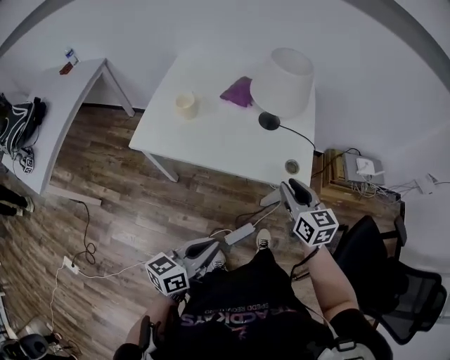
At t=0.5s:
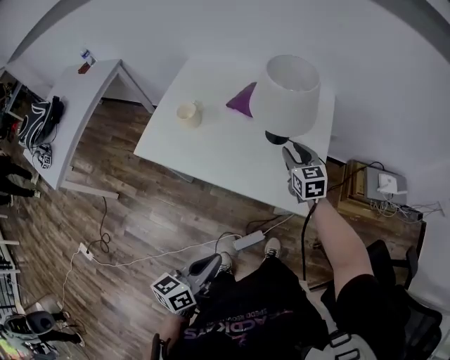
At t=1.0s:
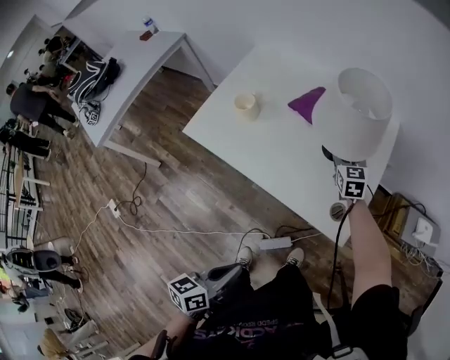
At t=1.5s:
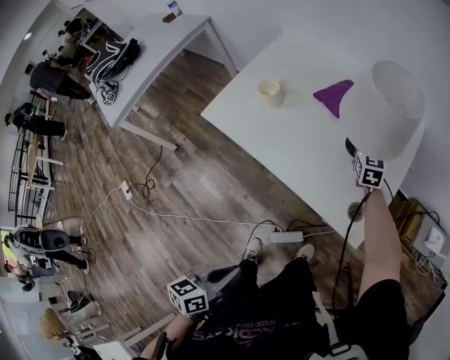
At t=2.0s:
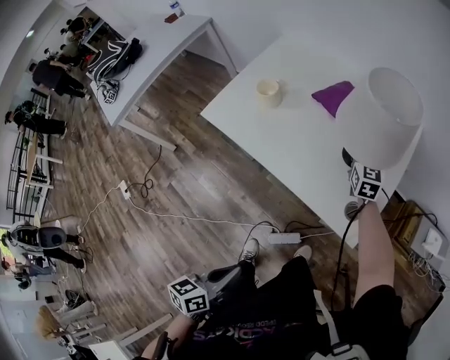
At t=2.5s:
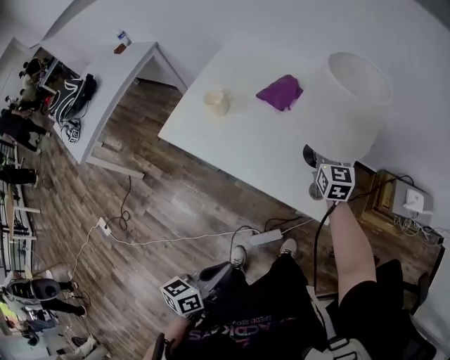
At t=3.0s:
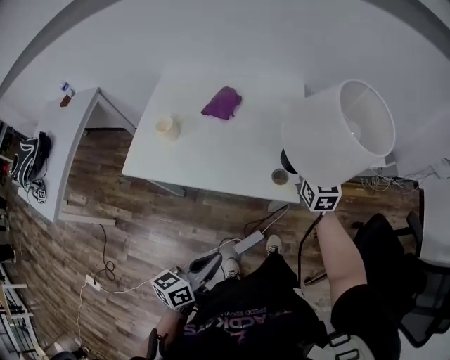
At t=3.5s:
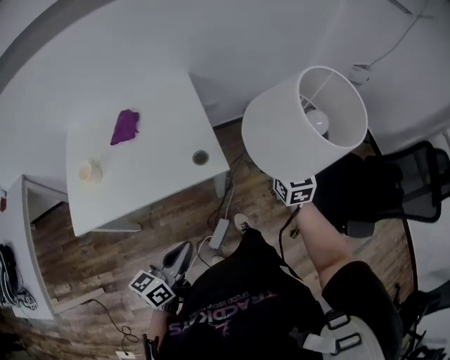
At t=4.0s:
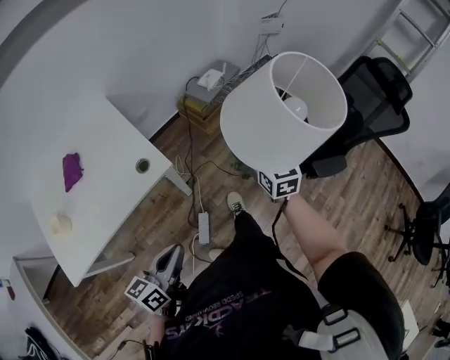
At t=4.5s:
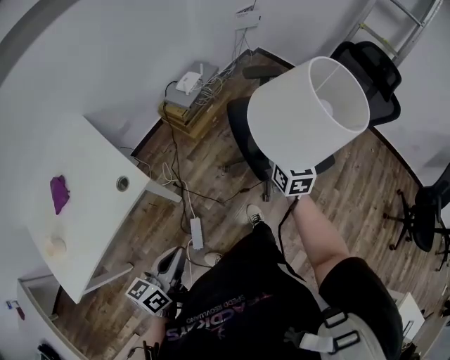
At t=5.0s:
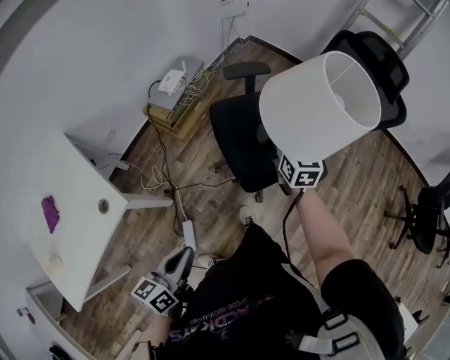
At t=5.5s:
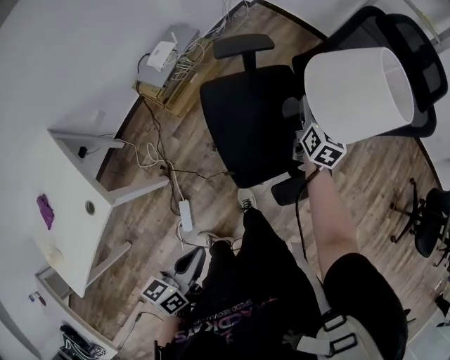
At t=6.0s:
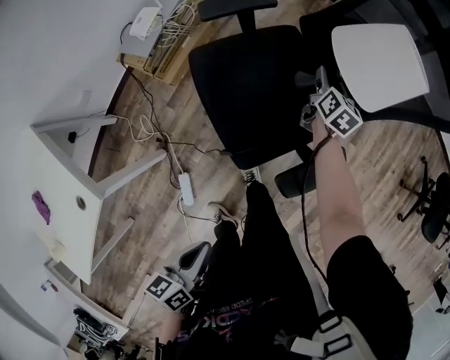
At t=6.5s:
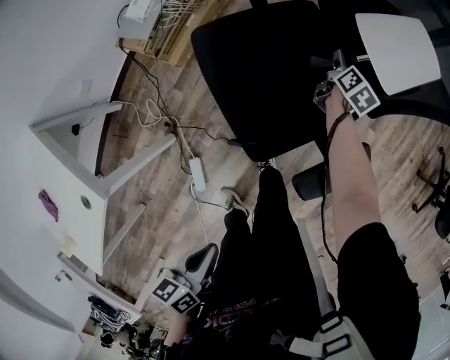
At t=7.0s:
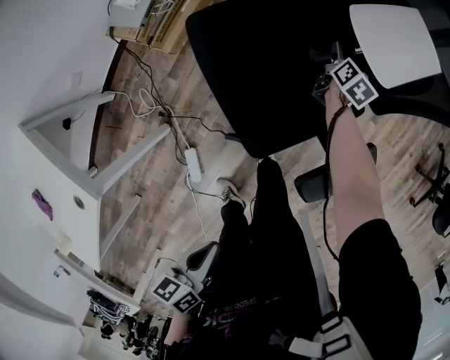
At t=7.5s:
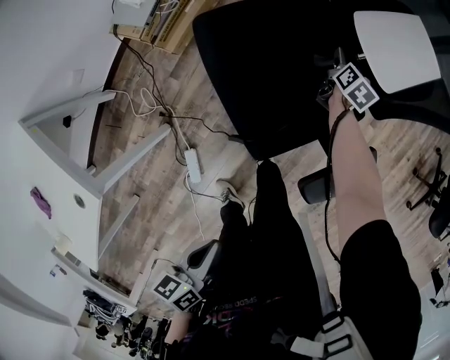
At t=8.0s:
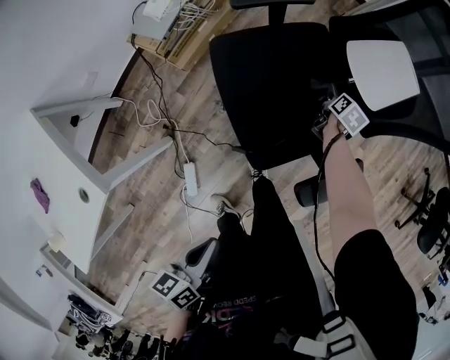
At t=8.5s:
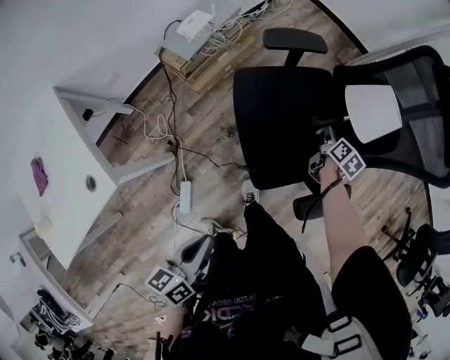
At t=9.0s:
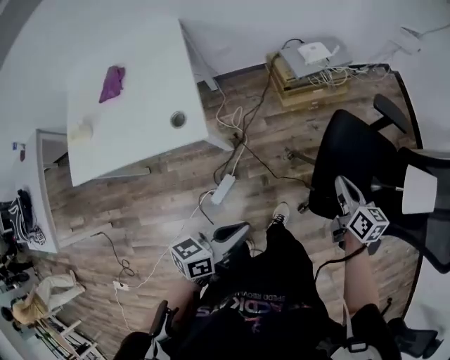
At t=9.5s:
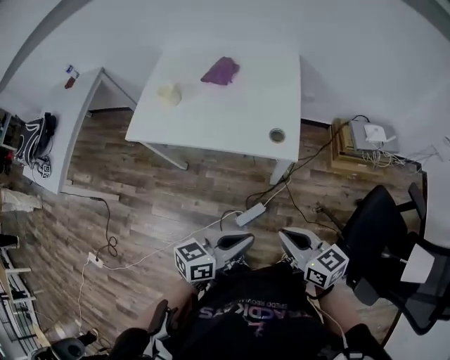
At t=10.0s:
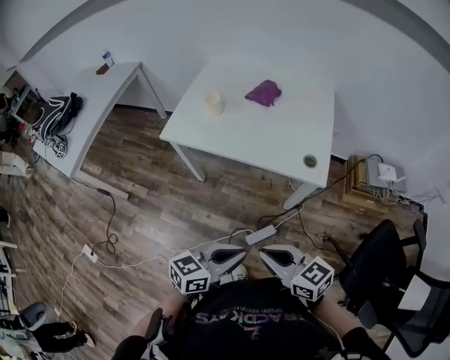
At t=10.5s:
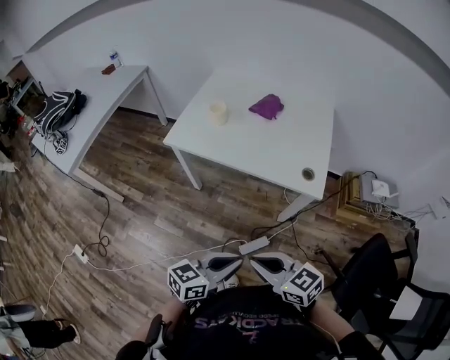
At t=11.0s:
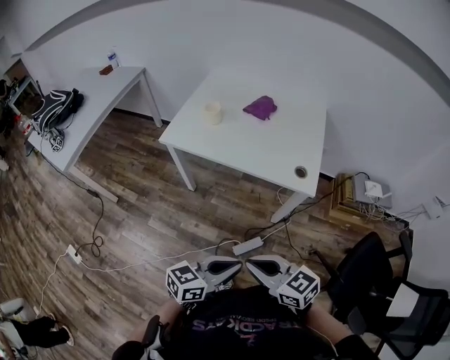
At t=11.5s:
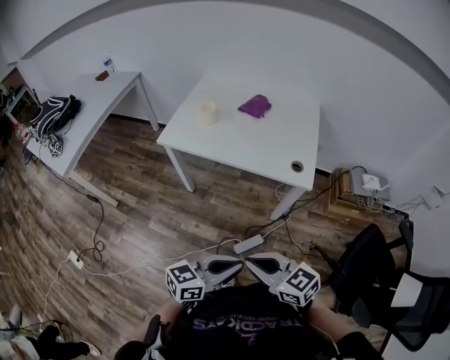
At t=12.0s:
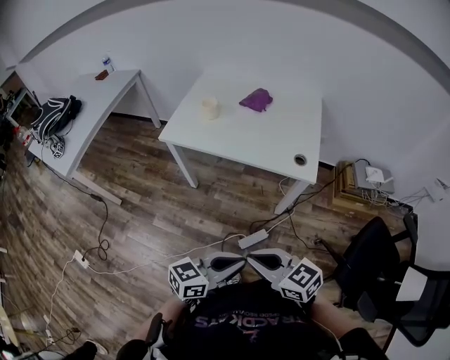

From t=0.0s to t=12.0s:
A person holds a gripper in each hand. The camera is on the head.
From t=0.0s to t=2.0s: The left gripper travels to the right and downward by roughly 5 cm, and turns by about 40 degrees, while the right gripper travels forward by some 30 cm.
From t=2.0s to t=4.0s: The right gripper shifts by some 60 cm, and changes its angle by roughly 60 degrees, while the left gripper ends up some 10 cm from where it was, and turns by some 70 degrees.
From t=4.0s to t=6.0s: The right gripper changes place by approximately 60 cm, and changes its angle by about 60 degrees. The left gripper moves some 35 cm, and changes its angle by roughly 30 degrees.
From t=6.0s to t=8.0s: The right gripper travels downward by approximately 15 cm, swivels roughly 20 degrees, and opens.
From t=8.0s to t=10.0s: Both grippers are carried roughly 70 cm. The left gripper rotates some 50 degrees; the right gripper points its fingers some 30 degrees further upward, and closes its fingers.
From t=10.0s to t=12.0s: Both grippers travel together backward, approximately 5 cm.

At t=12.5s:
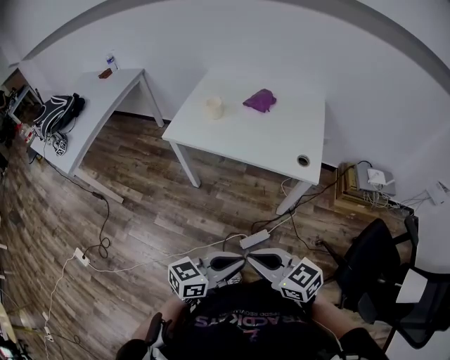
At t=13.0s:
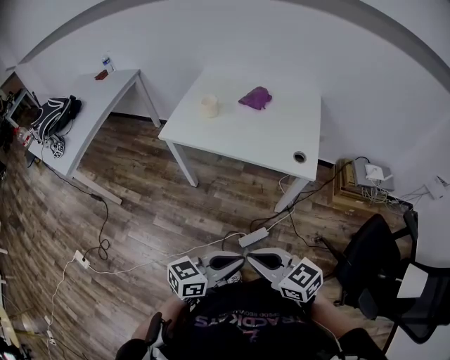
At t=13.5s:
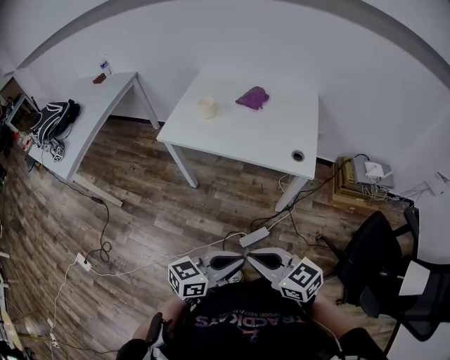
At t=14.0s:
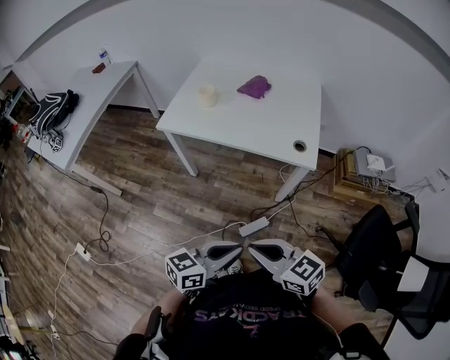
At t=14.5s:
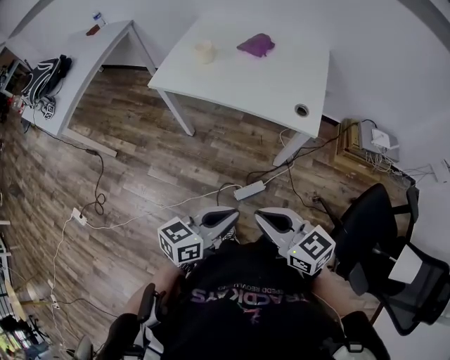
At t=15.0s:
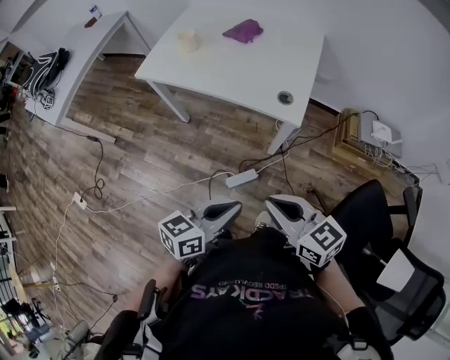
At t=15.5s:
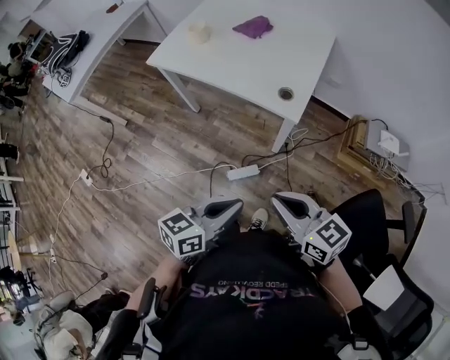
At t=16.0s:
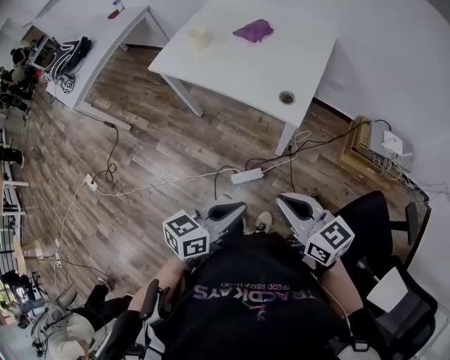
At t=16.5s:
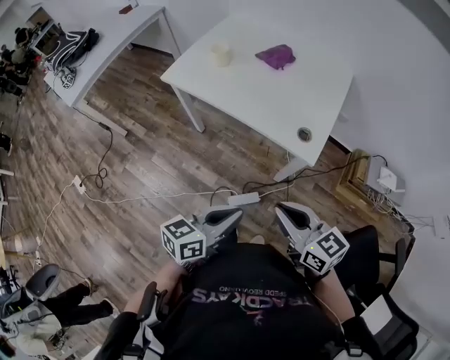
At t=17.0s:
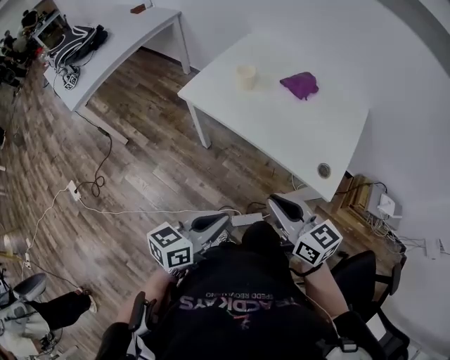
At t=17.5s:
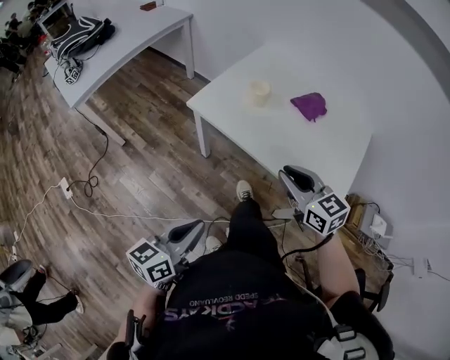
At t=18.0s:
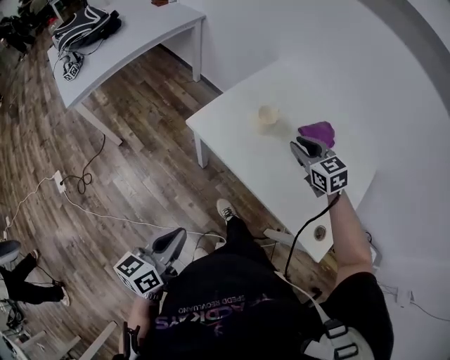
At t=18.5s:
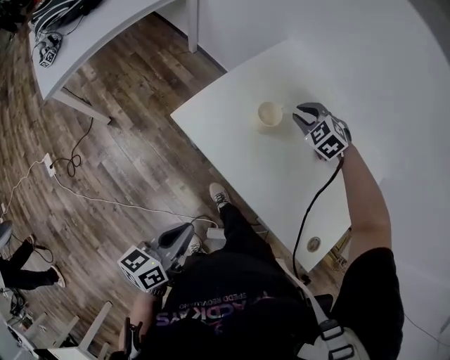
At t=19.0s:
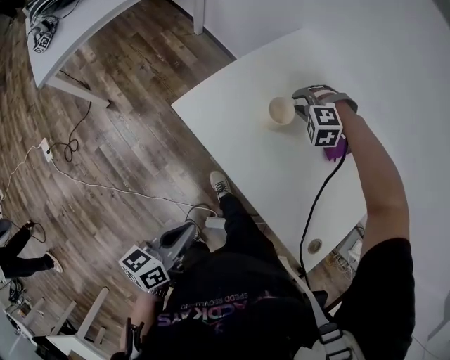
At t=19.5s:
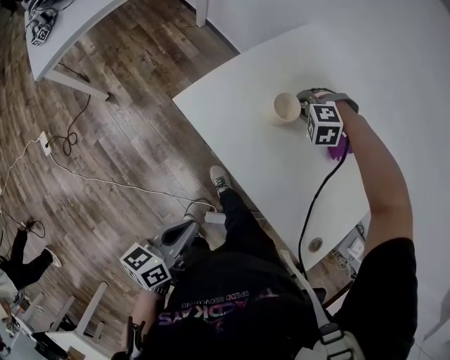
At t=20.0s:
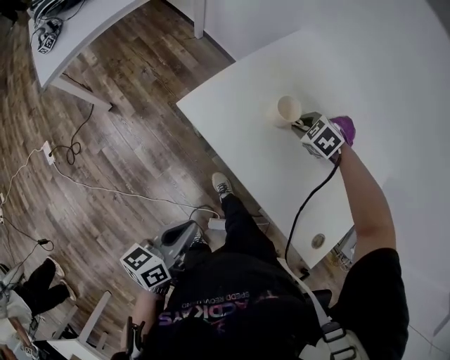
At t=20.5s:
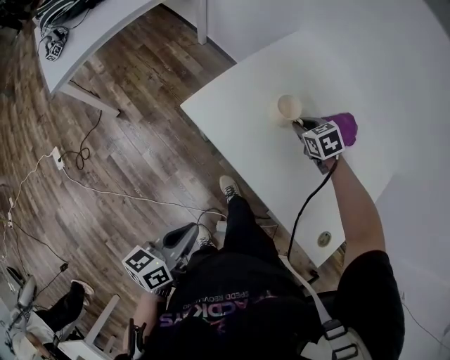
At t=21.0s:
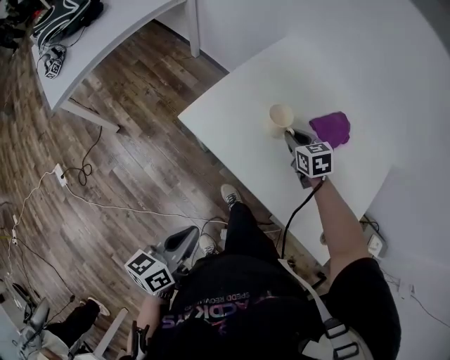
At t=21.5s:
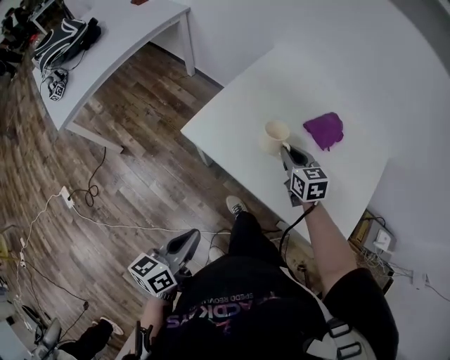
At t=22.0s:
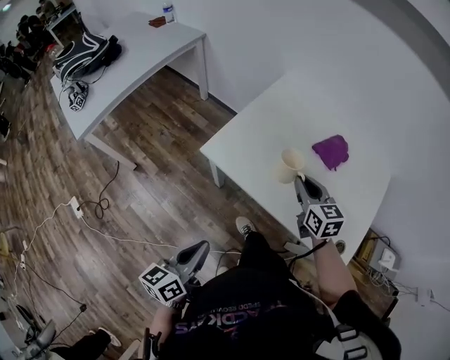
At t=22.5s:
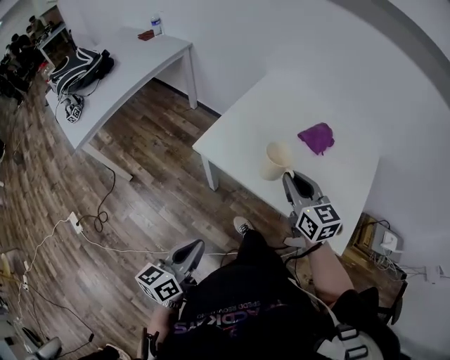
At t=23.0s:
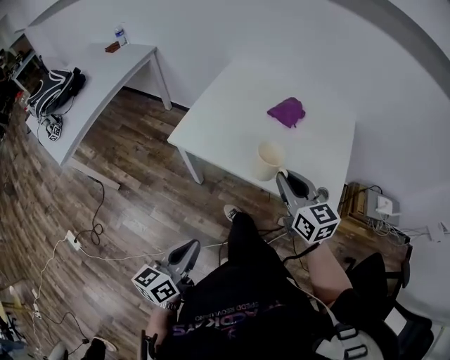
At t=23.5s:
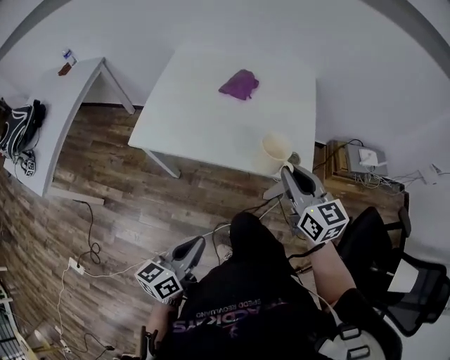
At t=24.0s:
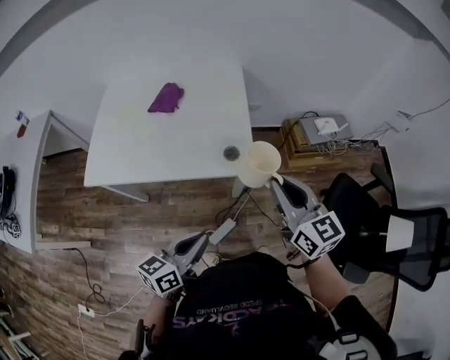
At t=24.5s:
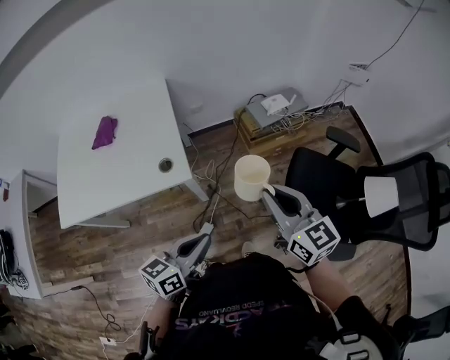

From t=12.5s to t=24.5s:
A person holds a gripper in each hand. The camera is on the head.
From t=12.5s to t=14.5s: The right gripper heads to the right, covering some 5 cm.
From t=14.5s to t=16.5s: The left gripper shifts about 10 cm to the right and forward, while the right gripper goes approximately 15 cm to the right and forward.
From t=16.5s to t=18.5s: The right gripper is displaced forward by about 60 cm, and rolls counterclockwise, seen from behind, by approximately 60 degrees; the left gripper goes some 35 cm forward and to the left, and rotates roughly 30 degrees.
From t=18.5s to t=20.5s: The right gripper moves downward, some 5 cm, and turns by roughly 40 degrees.
From t=20.5s to t=22.5s: The left gripper shifts some 10 cm backward and to the left. The right gripper heads backward and upward, covering some 30 cm, and tips its fingers upward by approximately 40 degrees.
From t=22.5s to t=24.5s: The two grippers travel together, about 60 cm. The left gripper swivels some 60 degrees. Meanwhile the right gripper swivels some 40 degrees.

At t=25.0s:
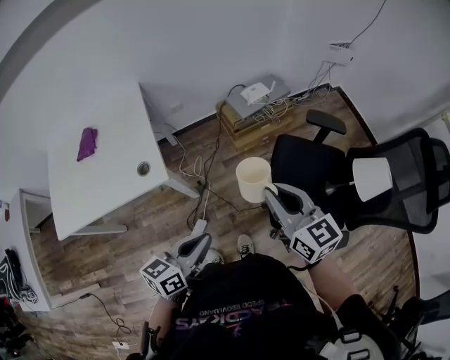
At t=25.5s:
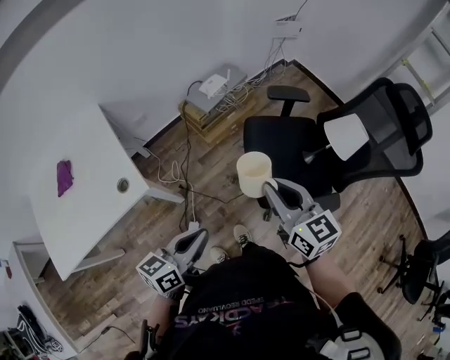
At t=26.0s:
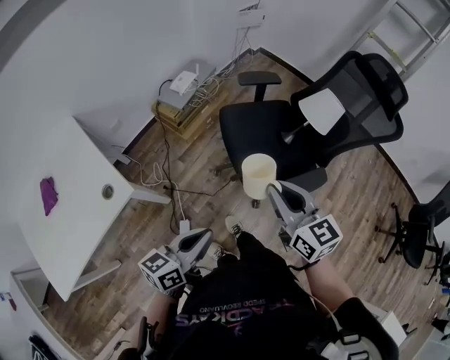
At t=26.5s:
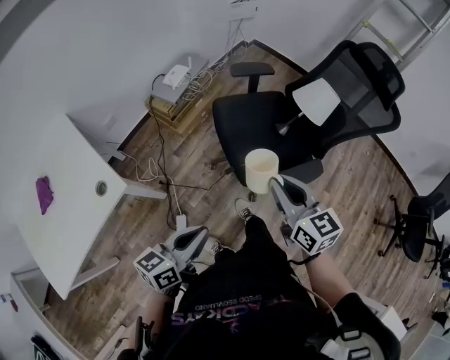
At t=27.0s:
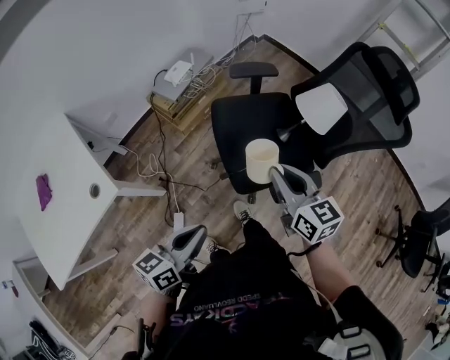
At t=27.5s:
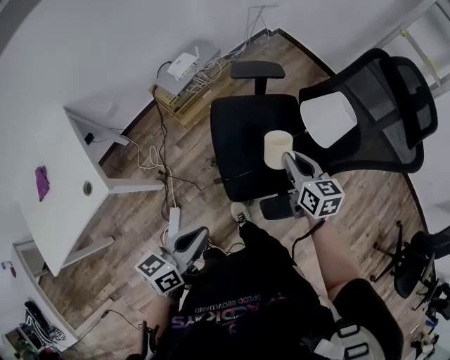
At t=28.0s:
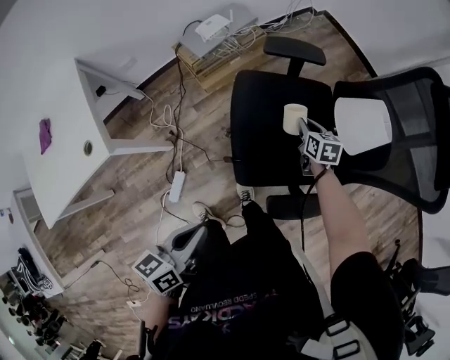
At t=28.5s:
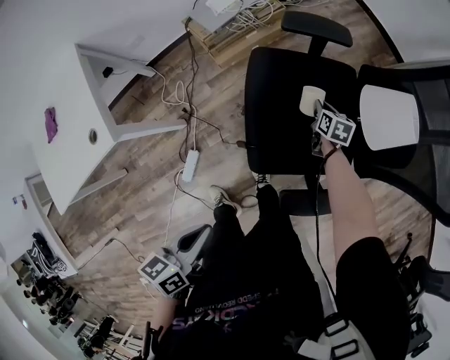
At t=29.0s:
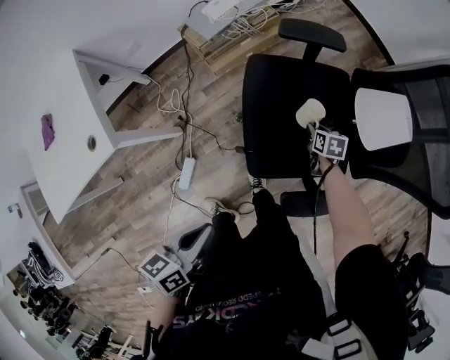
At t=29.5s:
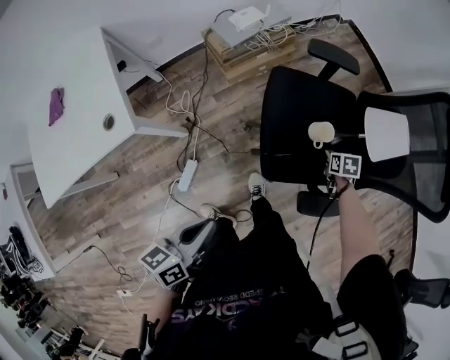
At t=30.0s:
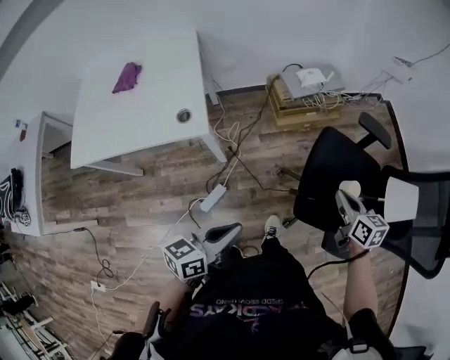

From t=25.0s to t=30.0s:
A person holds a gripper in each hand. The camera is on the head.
From t=25.0s to t=27.5s: The left gripper ends up roughly 20 cm from where it was; the right gripper moves about 35 cm, and swivels roughly 40 degrees.
From t=27.5s to t=30.0s: The left gripper ends up some 15 cm from where it was, and changes its angle by some 20 degrees. Meanwhile the right gripper reaches approximately 30 cm downward, then returns, and swivels about 30 degrees.
